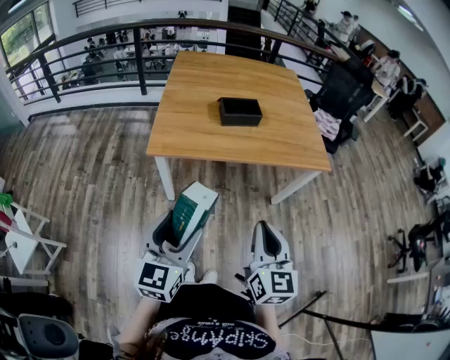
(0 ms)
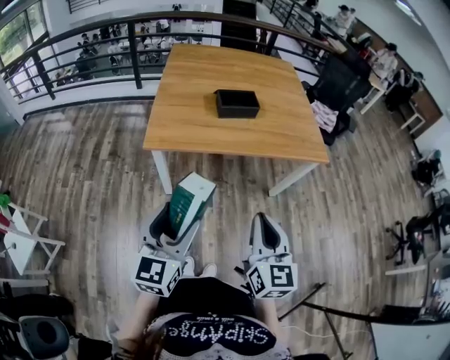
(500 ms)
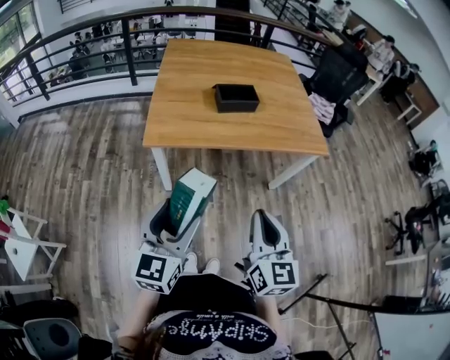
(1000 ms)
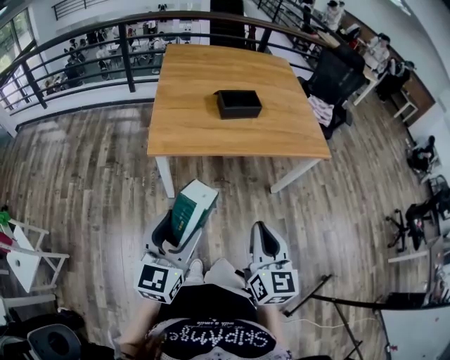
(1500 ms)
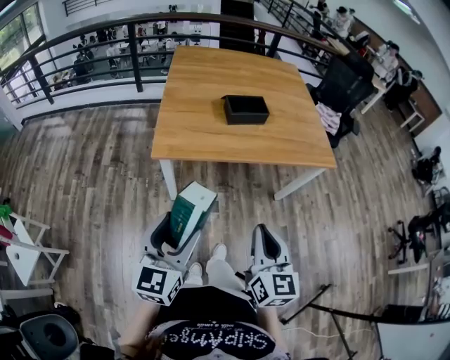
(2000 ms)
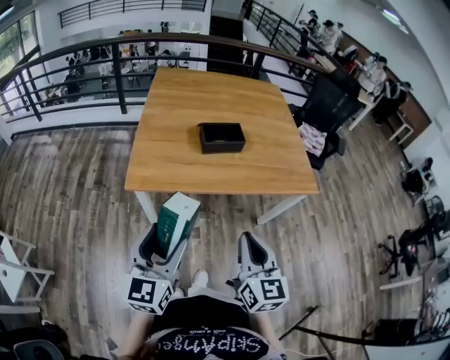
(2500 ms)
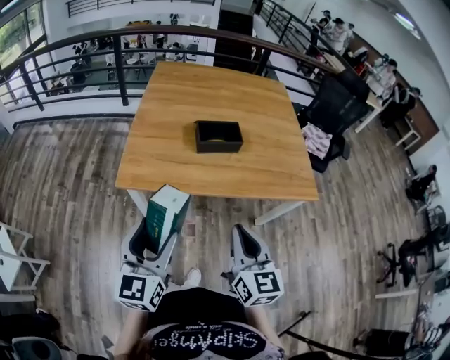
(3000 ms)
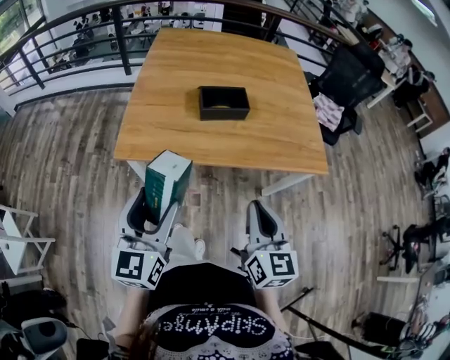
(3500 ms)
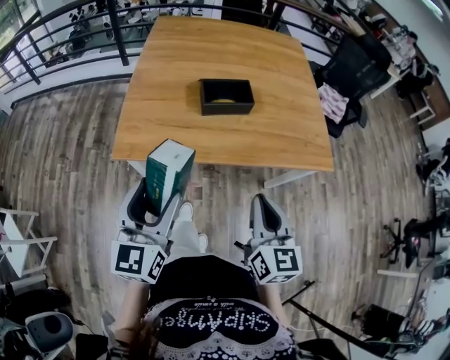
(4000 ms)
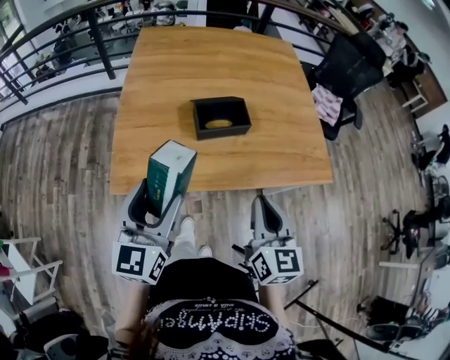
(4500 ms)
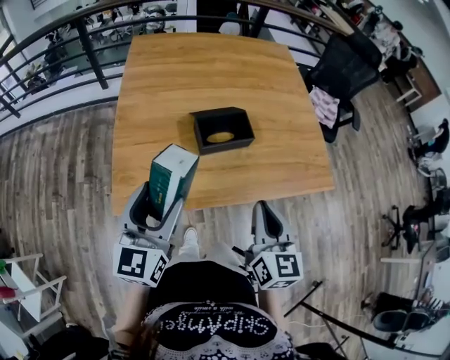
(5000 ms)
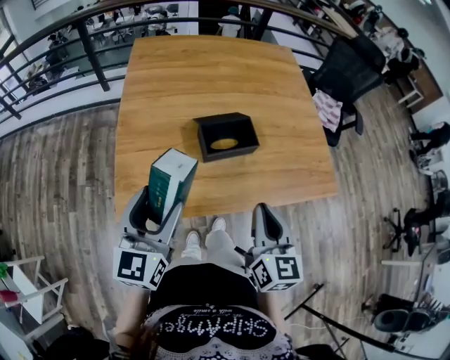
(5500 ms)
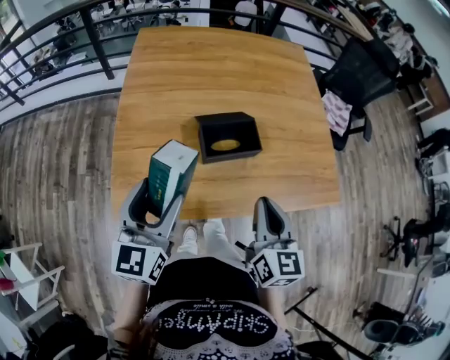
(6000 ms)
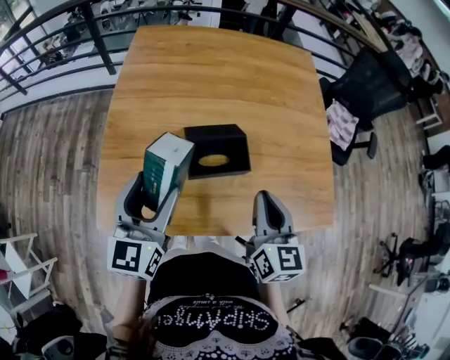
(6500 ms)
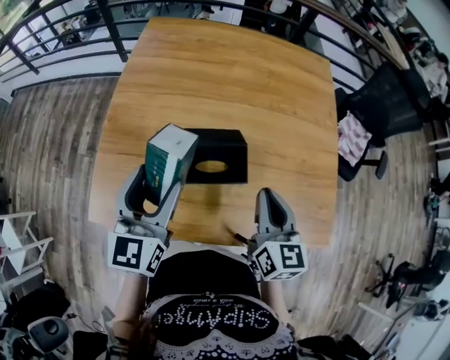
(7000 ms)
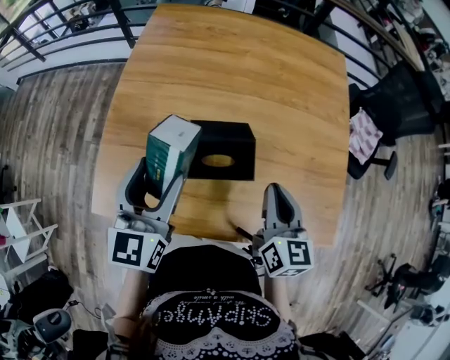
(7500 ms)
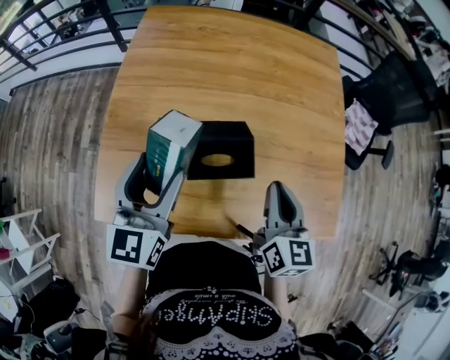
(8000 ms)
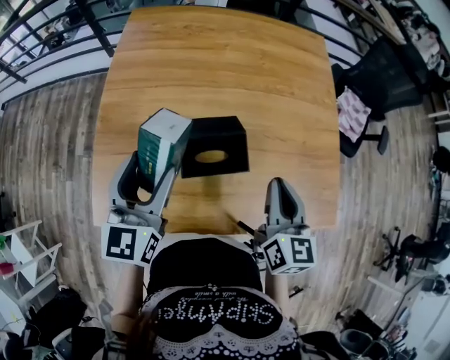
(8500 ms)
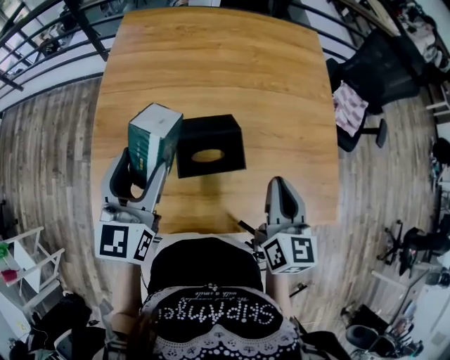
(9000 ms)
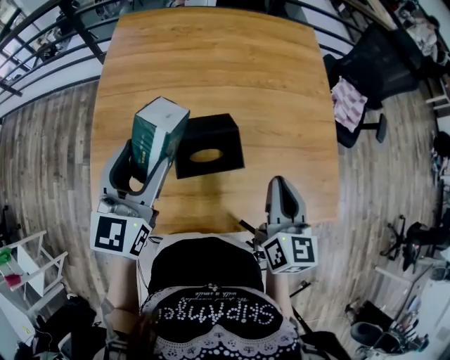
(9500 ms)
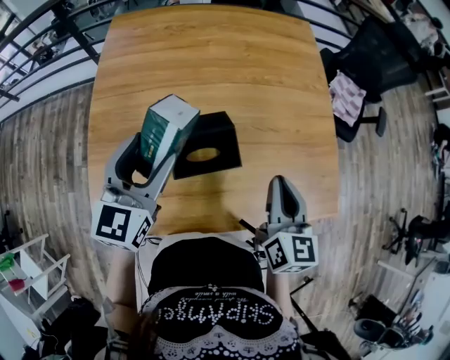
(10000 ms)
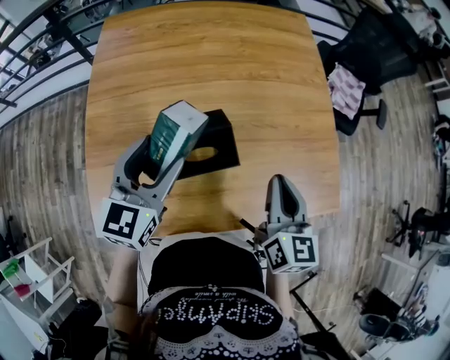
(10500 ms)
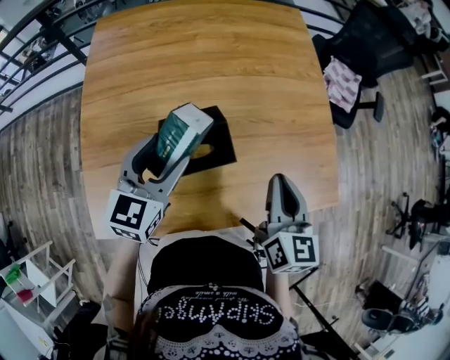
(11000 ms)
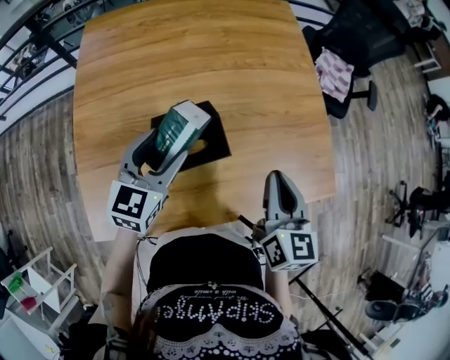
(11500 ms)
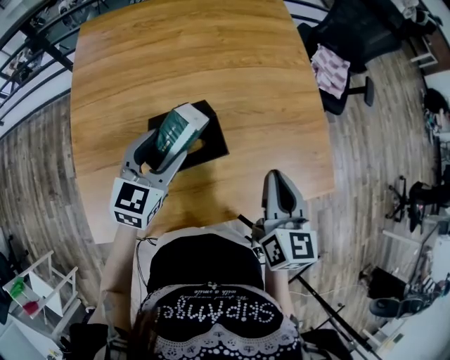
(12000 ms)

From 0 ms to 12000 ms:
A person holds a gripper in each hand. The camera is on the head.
From 0 ms to 2000 ms: Both grippers move to the left, approximately 5 cm.
From 2000 ms to 4000 ms: The left gripper heads forward, covering approximately 20 cm; the right gripper goes about 20 cm forward and to the right.
From 4000 ms to 6000 ms: The two grippers go approximately 20 cm forward.
From 6000 ms to 8000 ms: The two grippers go about 15 cm forward and to the right.
From 8000 ms to 10000 ms: The left gripper ends up about 5 cm from where it was.
From 10000 ms to 12000 ms: The left gripper is displaced downward and to the right by approximately 10 cm.

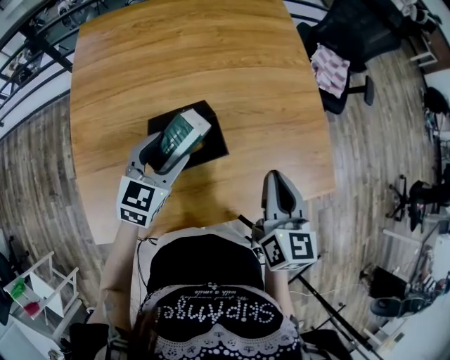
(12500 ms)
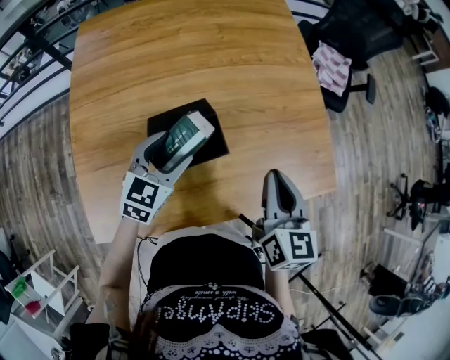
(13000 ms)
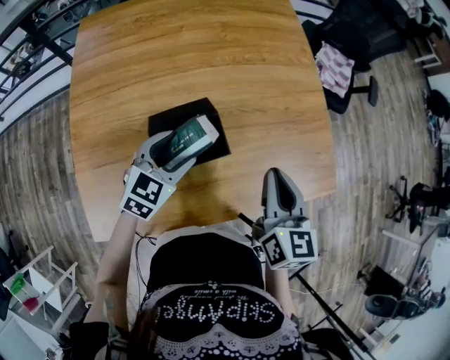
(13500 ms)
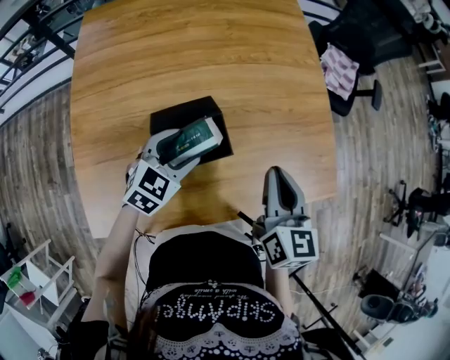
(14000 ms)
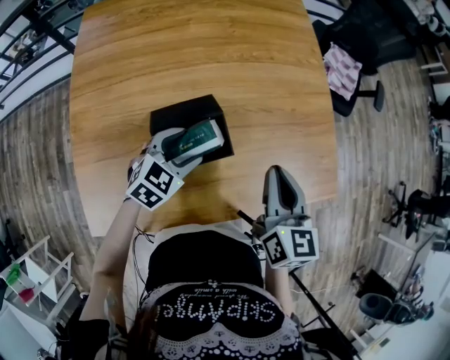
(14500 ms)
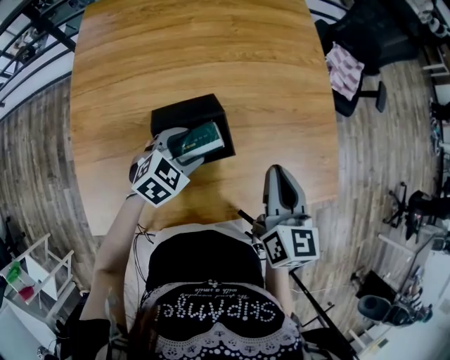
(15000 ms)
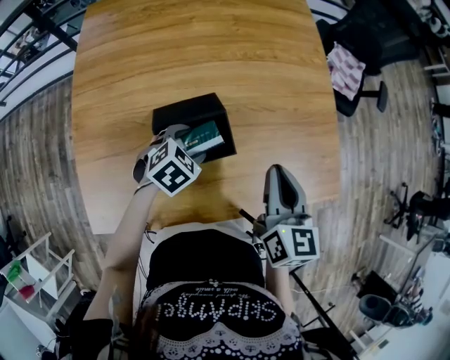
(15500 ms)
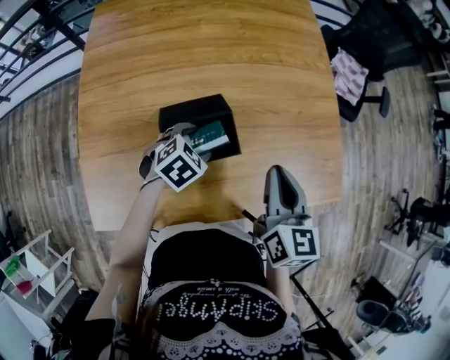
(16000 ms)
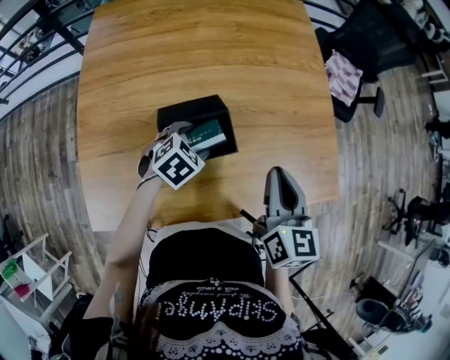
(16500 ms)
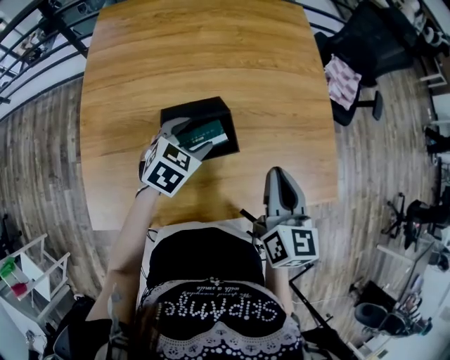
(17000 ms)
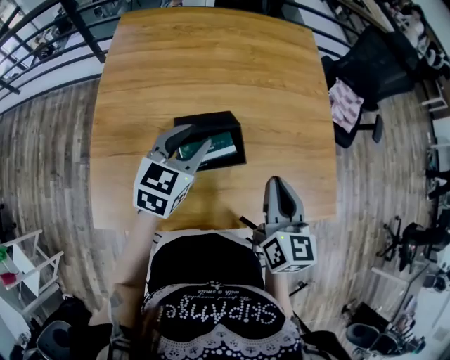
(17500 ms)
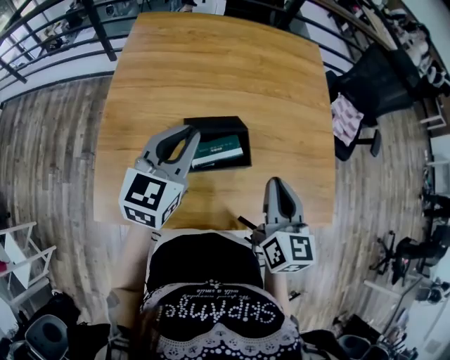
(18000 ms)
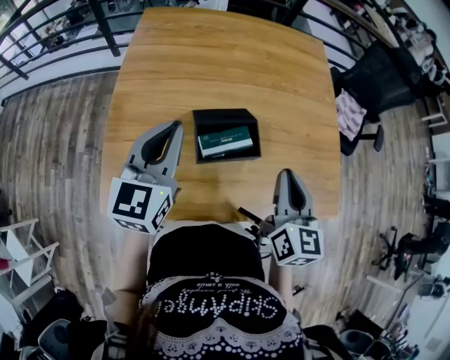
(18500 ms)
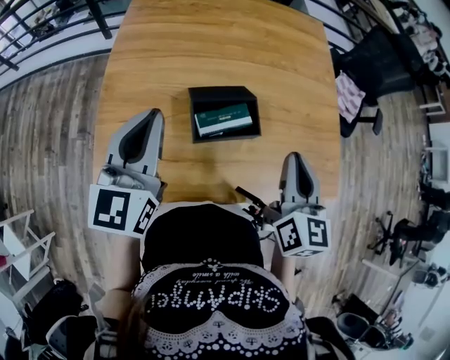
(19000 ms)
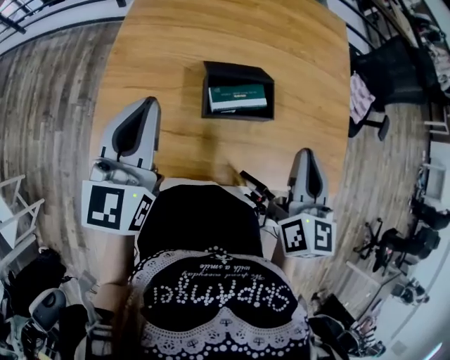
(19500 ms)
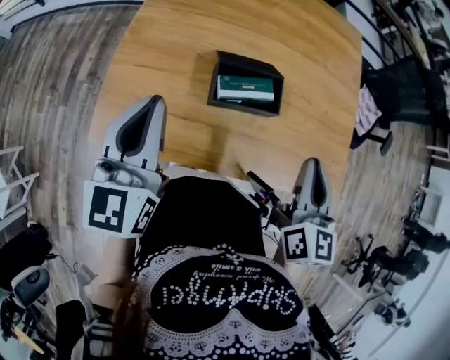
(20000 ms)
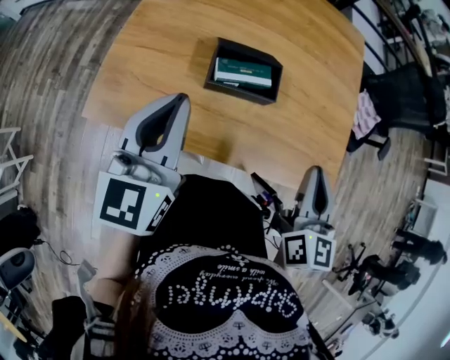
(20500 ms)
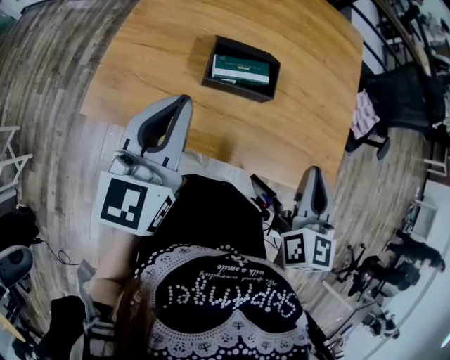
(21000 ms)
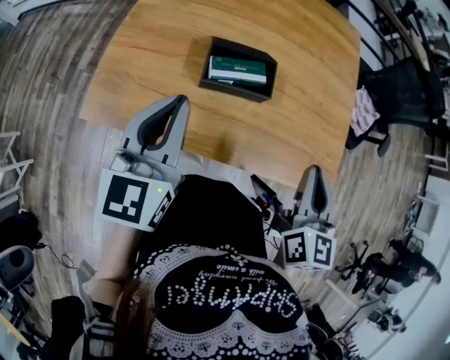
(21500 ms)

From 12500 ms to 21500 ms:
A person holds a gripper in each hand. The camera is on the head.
From 12500 ms to 14500 ms: The left gripper shifts about 10 cm downward, and rotates some 20 degrees.
From 14500 ms to 17000 ms: The grippers move only a little.
From 17000 ms to 19500 ms: The right gripper ends up about 5 cm from where it was. The left gripper heads upward, to the left and backward, covering about 30 cm, points its fingers approximately 40 degrees further upward, and closes up.
From 19500 ms to 21500 ms: Both grippers travel together to the right and backward, approximately 10 cm.

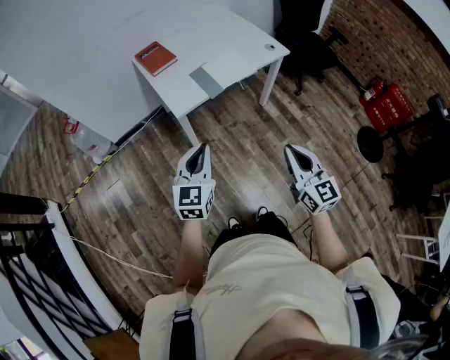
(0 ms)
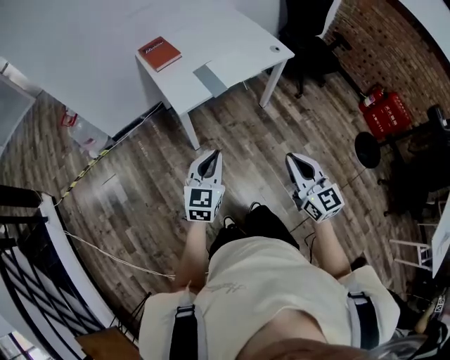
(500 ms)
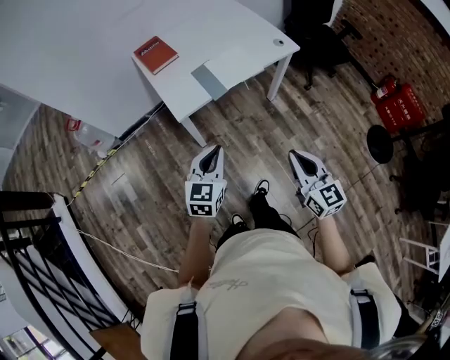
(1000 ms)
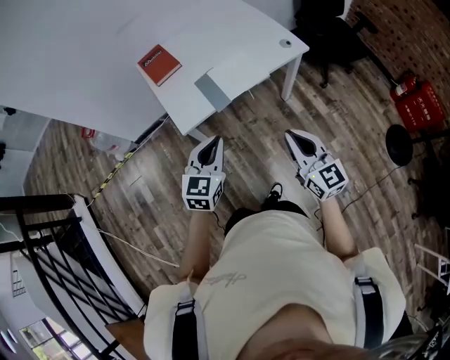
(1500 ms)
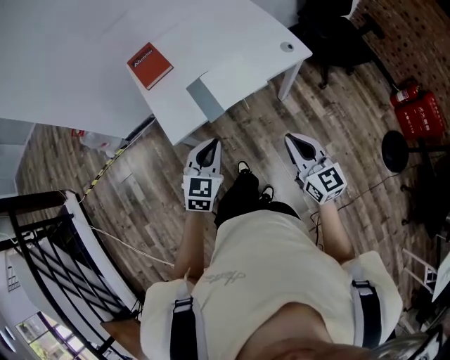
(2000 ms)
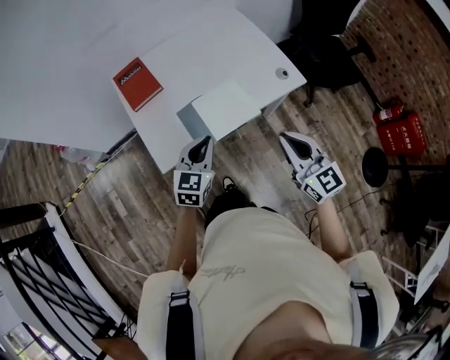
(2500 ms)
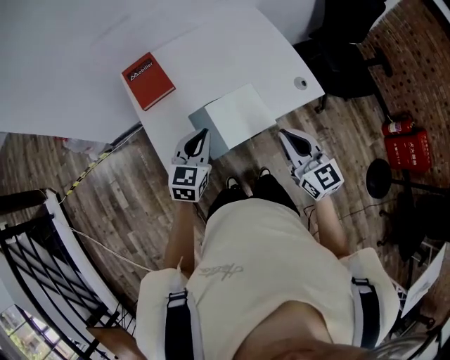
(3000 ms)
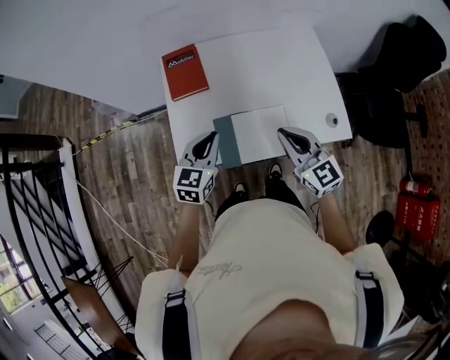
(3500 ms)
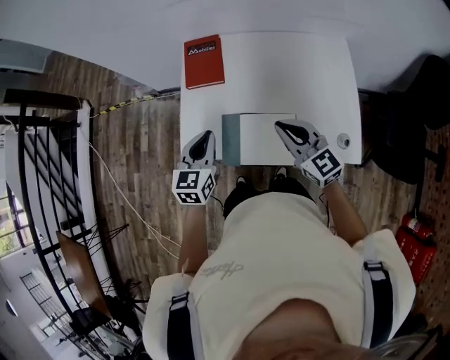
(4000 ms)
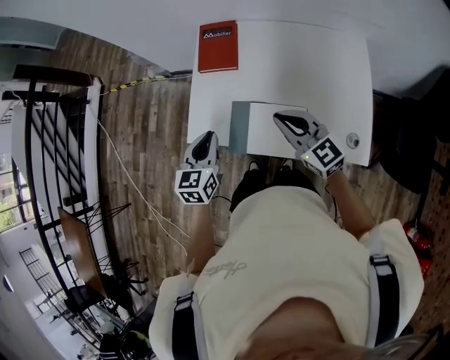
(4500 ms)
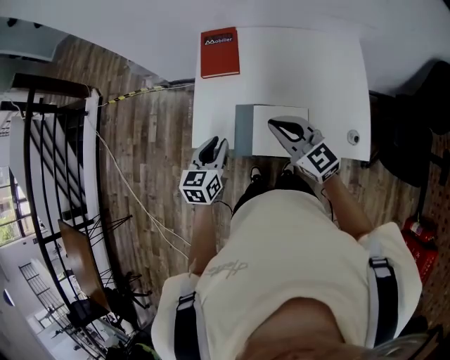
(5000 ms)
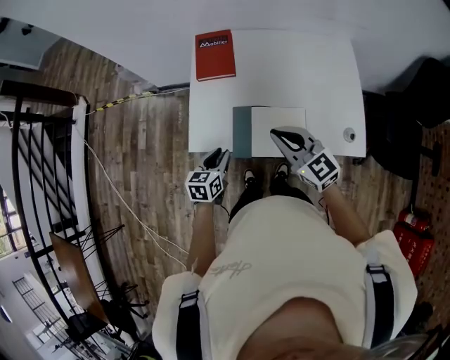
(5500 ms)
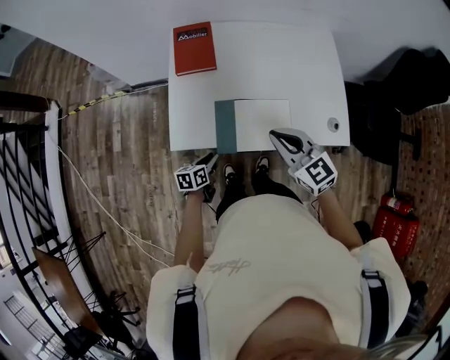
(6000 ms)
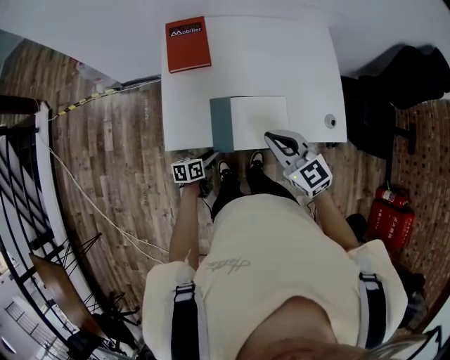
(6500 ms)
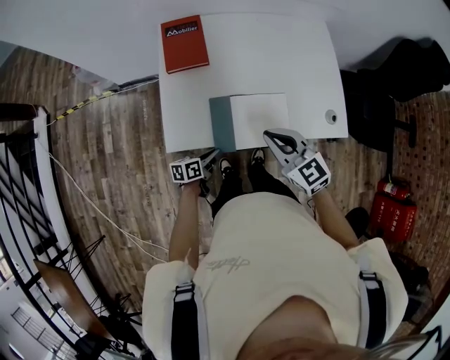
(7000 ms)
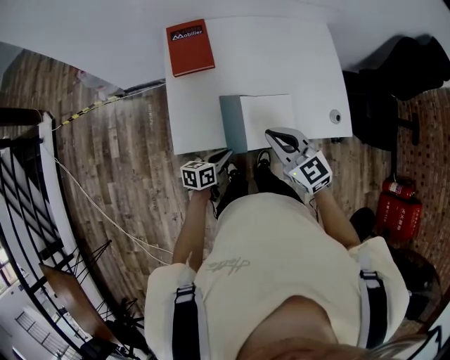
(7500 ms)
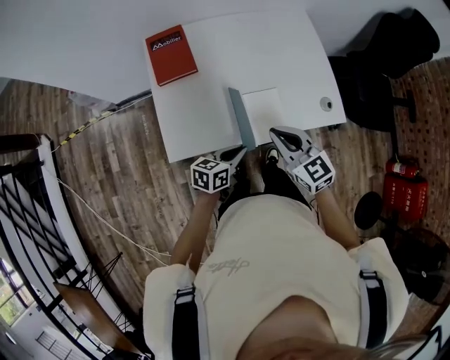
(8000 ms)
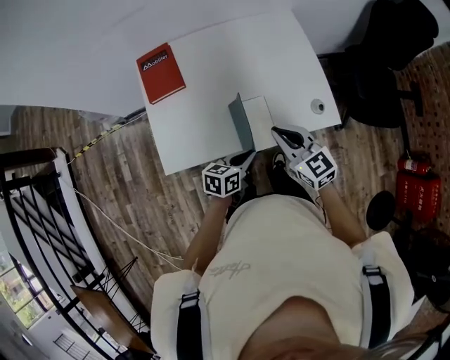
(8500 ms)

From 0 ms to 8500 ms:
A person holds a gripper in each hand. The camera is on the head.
From 0 ms to 2000 ms: The right gripper heads forward, covering some 25 cm. The left gripper shifts some 25 cm forward and to the right.
From 2000 ms to 4000 ms: The left gripper moves some 25 cm, and rotates about 40 degrees, while the right gripper changes place by roughly 35 cm, and rotates some 50 degrees.
From 4000 ms to 6500 ms: The left gripper shifts roughly 30 cm downward, changes its angle by roughly 50 degrees, and opens its fingers. The right gripper moves roughly 10 cm.
From 6500 ms to 8500 ms: The left gripper goes some 25 cm to the right and upward, and turns by some 30 degrees, while the right gripper heads to the right, covering some 10 cm.
